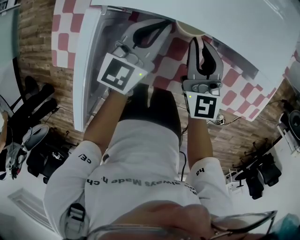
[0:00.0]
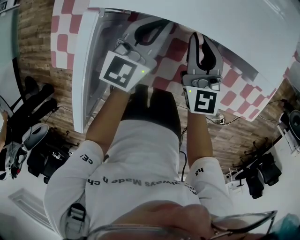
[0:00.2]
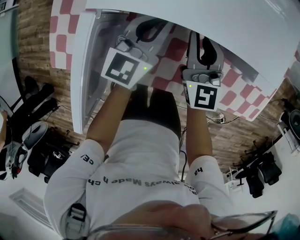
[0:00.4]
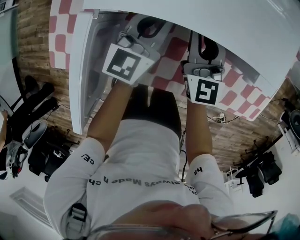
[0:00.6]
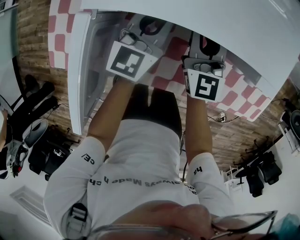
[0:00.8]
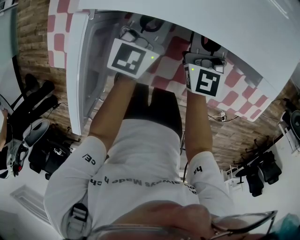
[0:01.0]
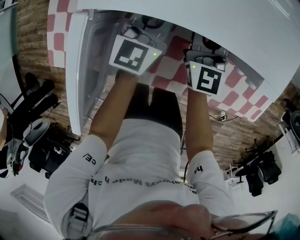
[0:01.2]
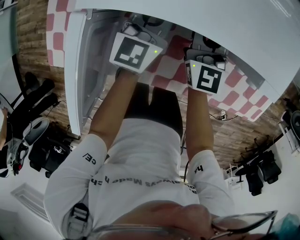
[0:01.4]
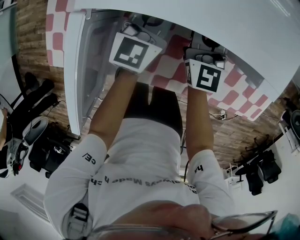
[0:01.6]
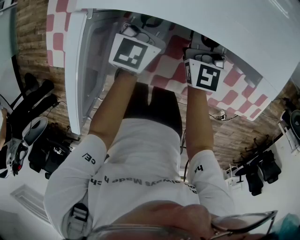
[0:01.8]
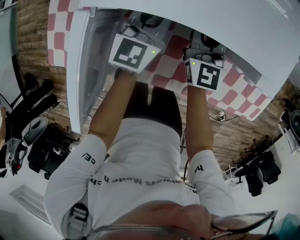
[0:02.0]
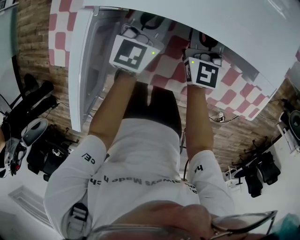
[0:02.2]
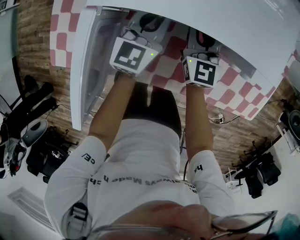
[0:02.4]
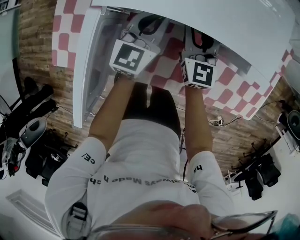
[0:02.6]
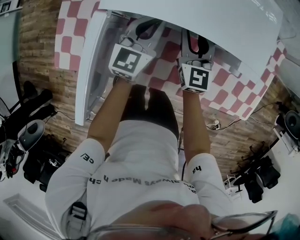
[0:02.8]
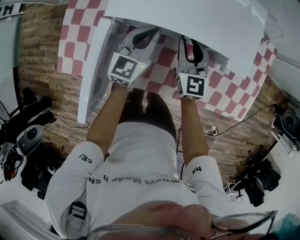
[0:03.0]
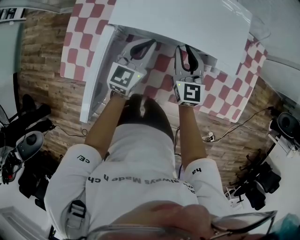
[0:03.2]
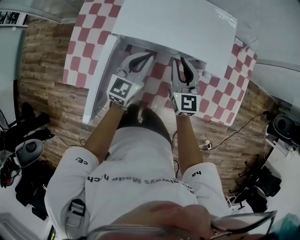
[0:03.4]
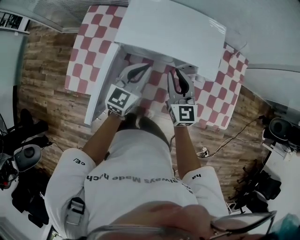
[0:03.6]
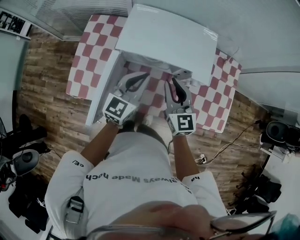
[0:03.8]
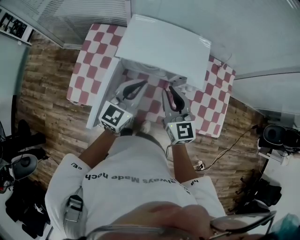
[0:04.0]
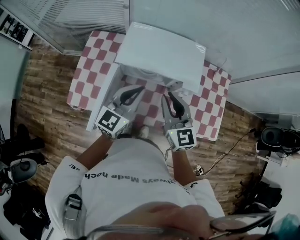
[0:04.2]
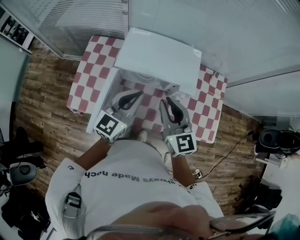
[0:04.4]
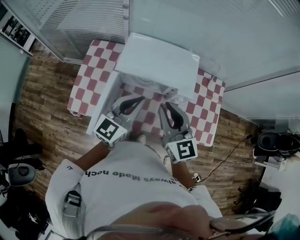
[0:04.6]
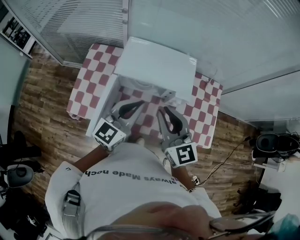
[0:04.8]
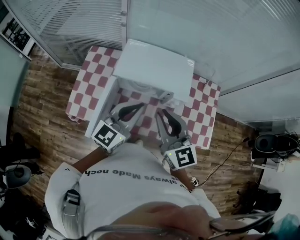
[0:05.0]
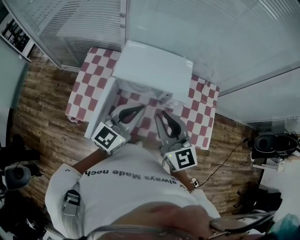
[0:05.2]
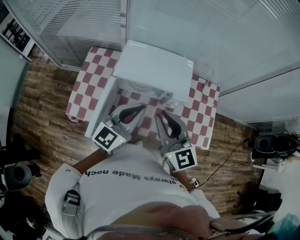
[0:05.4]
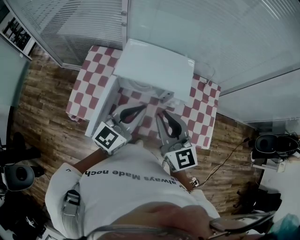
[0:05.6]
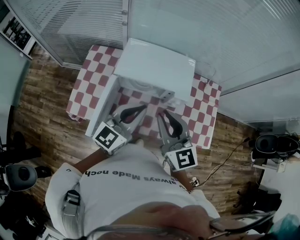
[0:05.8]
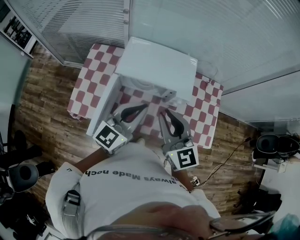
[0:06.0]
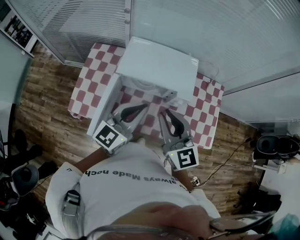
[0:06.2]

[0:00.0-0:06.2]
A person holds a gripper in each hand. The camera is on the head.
0:00.0 to 0:01.6: The two grippers go about 5 cm forward.
0:01.6 to 0:03.2: Both grippers travel together upward and backward, some 10 cm.
0:03.2 to 0:04.6: The two grippers go some 30 cm upward and backward.
0:04.6 to 0:06.2: The grippers make only small movements.

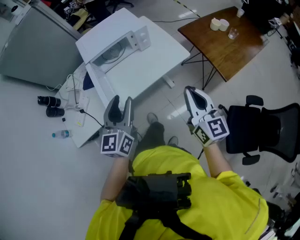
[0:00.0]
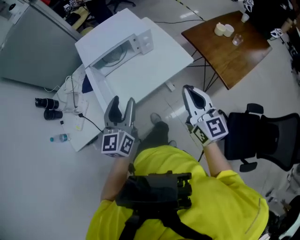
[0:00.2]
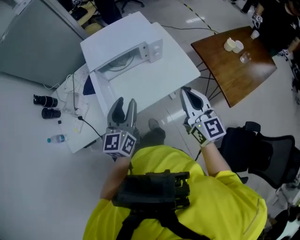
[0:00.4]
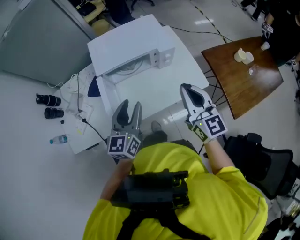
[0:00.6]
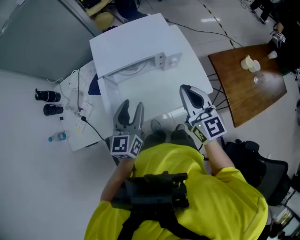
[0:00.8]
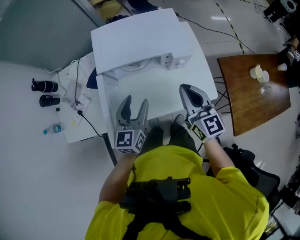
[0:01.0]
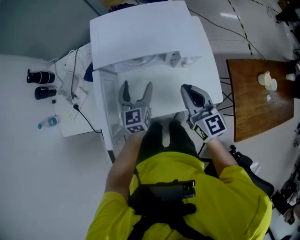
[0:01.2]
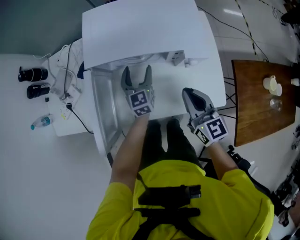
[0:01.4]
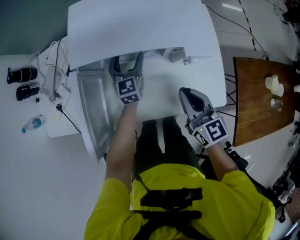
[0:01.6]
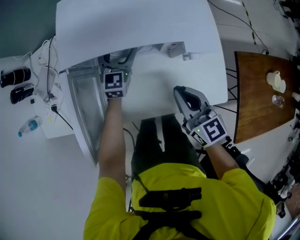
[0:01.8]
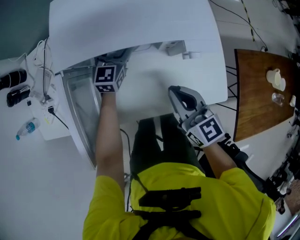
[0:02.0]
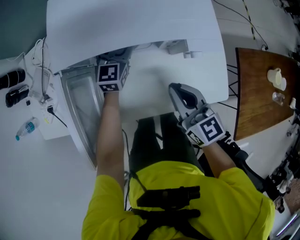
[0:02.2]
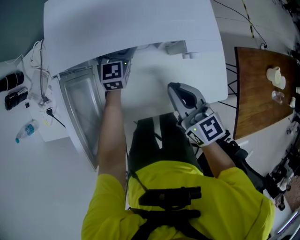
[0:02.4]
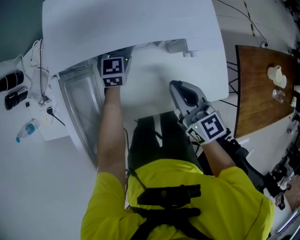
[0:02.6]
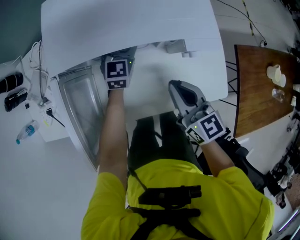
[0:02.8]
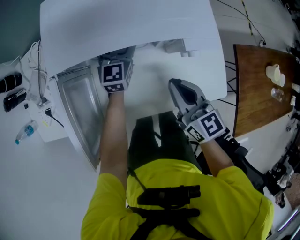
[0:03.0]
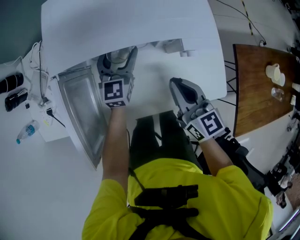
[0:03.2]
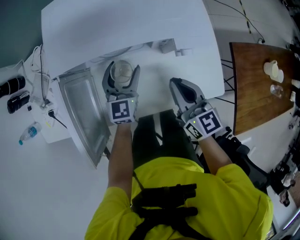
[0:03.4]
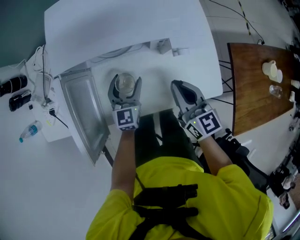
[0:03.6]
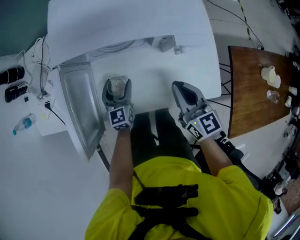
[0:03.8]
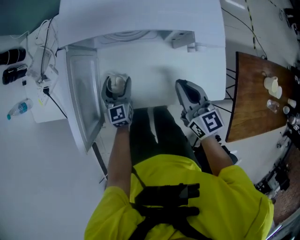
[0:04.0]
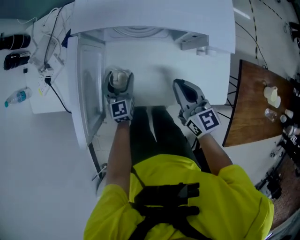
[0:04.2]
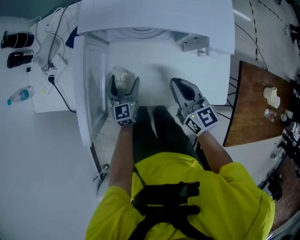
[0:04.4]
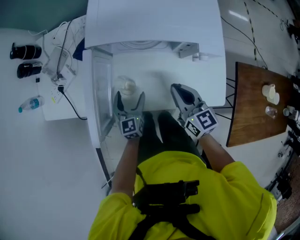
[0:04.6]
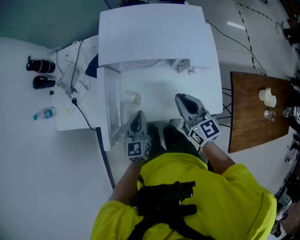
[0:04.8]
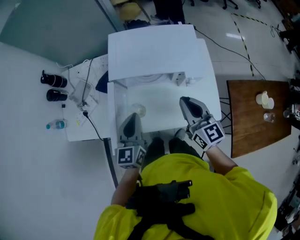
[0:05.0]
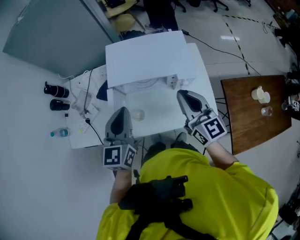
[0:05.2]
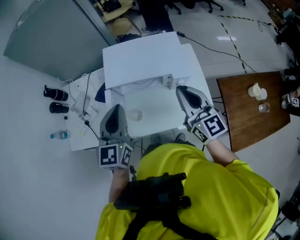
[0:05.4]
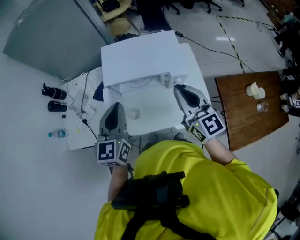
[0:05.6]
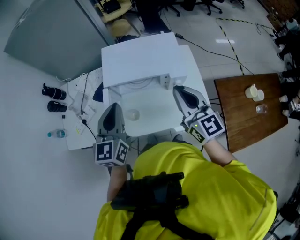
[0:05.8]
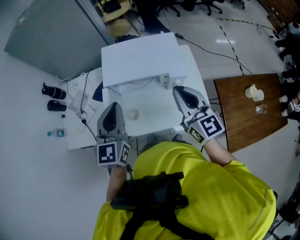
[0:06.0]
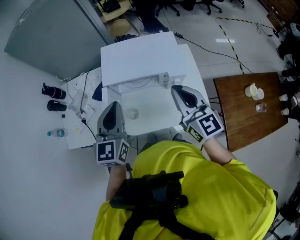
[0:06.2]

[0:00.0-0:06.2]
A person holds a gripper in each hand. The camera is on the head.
0:00.0 to 0:01.6: The right gripper moves roughly 40 cm, and swivels approximately 40 degrees. The left gripper shifts by some 60 cm, turns by about 30 degrees, and opens its fingers.
0:03.2 to 0:04.6: The left gripper is displaced backward and to the left by about 20 cm, and rotates roughly 20 degrees. Meanwhile the right gripper is displaced to the left by roughly 5 cm.
0:04.6 to 0:06.2: The grippers both shift upward by approximately 35 cm. The right gripper rotates about 30 degrees. Meanwhile the left gripper swivels roughly 20 degrees, and closes up.

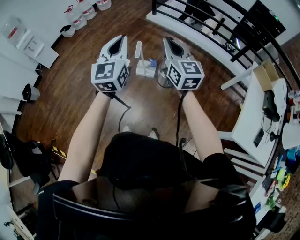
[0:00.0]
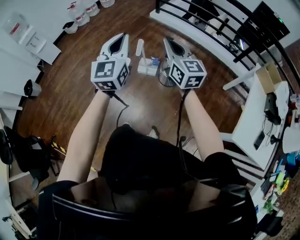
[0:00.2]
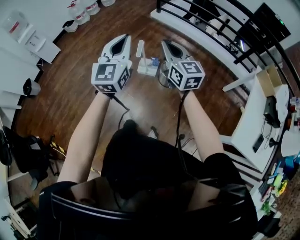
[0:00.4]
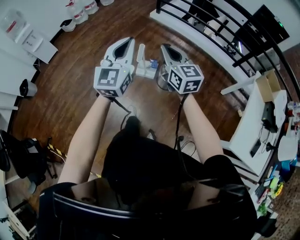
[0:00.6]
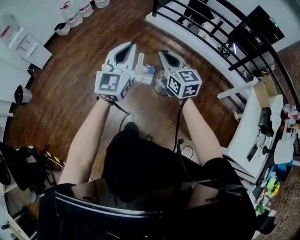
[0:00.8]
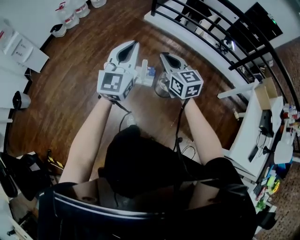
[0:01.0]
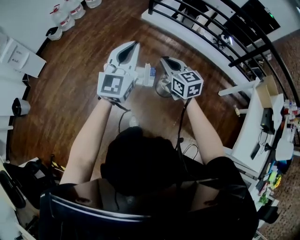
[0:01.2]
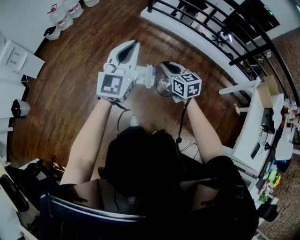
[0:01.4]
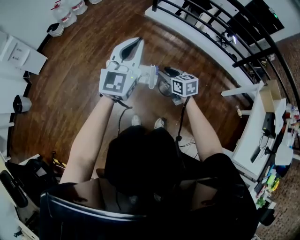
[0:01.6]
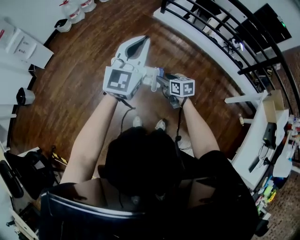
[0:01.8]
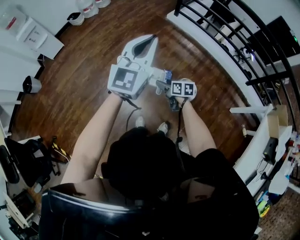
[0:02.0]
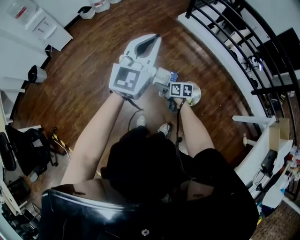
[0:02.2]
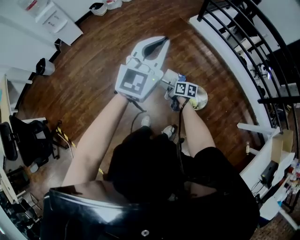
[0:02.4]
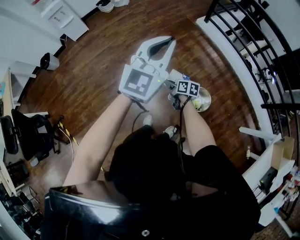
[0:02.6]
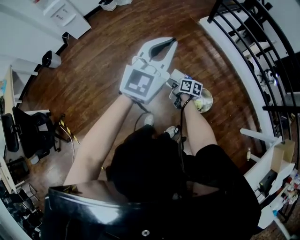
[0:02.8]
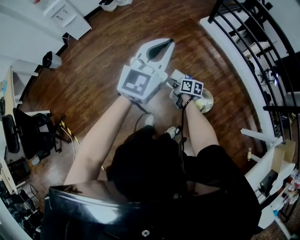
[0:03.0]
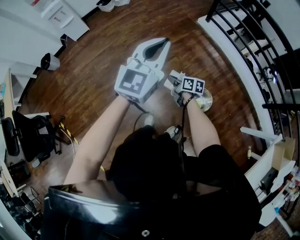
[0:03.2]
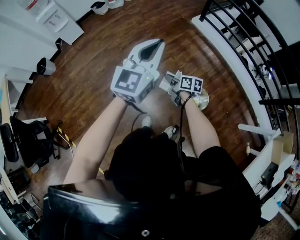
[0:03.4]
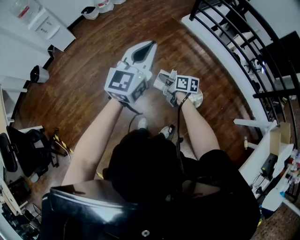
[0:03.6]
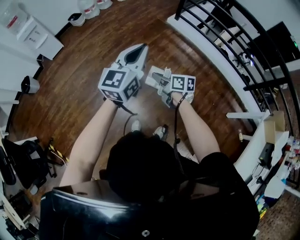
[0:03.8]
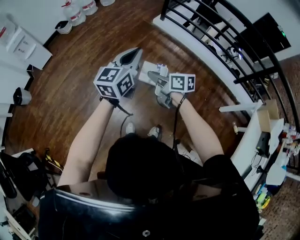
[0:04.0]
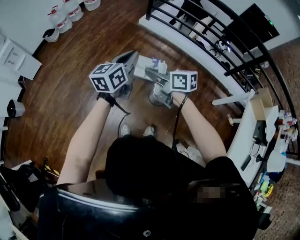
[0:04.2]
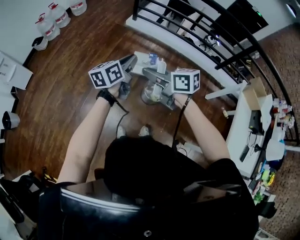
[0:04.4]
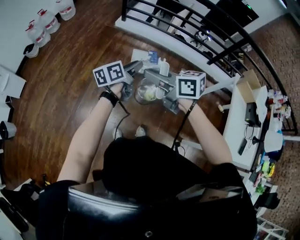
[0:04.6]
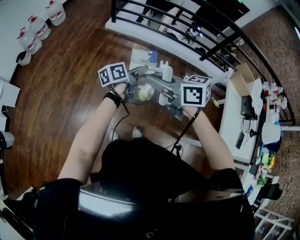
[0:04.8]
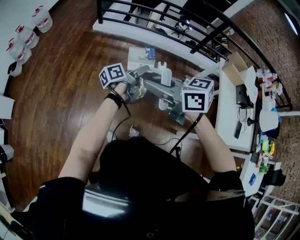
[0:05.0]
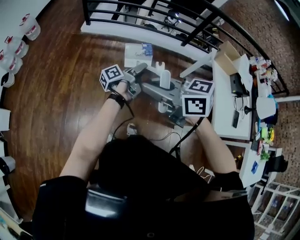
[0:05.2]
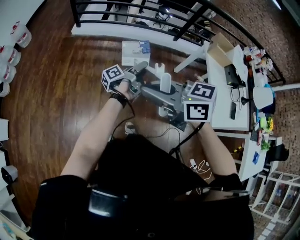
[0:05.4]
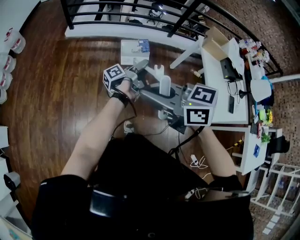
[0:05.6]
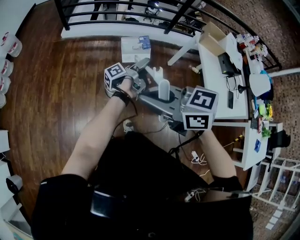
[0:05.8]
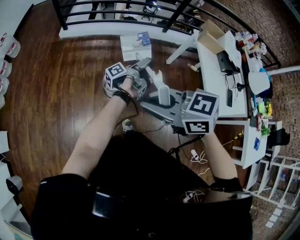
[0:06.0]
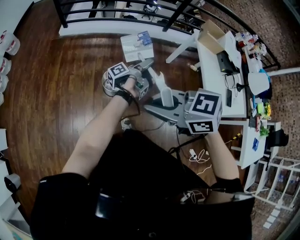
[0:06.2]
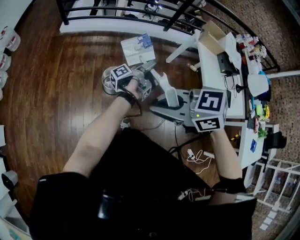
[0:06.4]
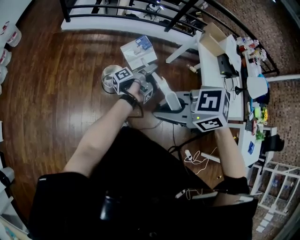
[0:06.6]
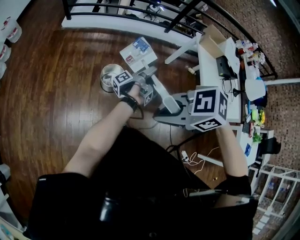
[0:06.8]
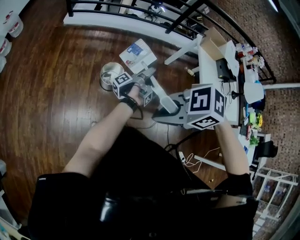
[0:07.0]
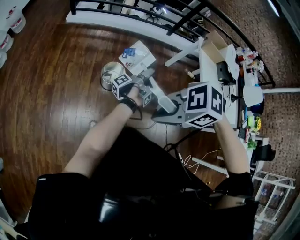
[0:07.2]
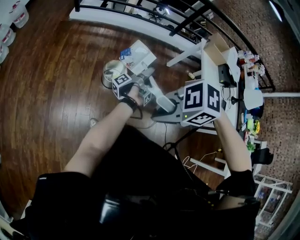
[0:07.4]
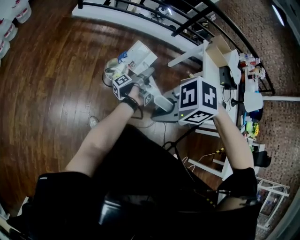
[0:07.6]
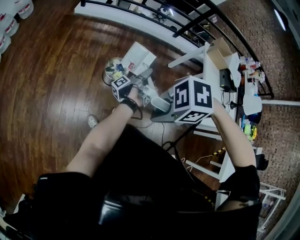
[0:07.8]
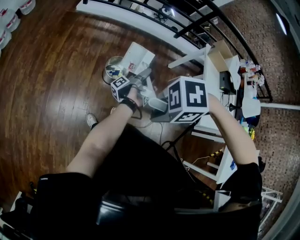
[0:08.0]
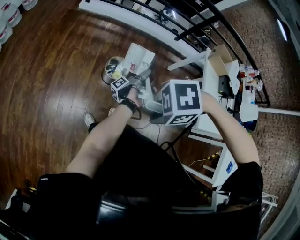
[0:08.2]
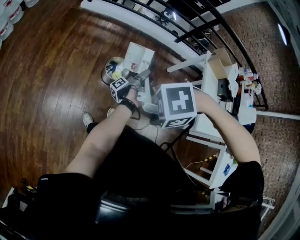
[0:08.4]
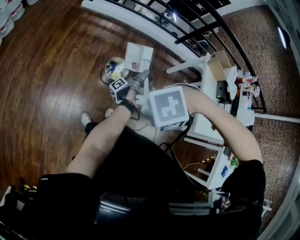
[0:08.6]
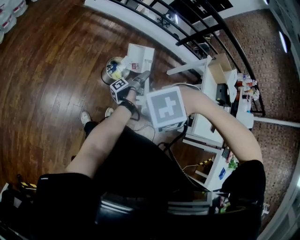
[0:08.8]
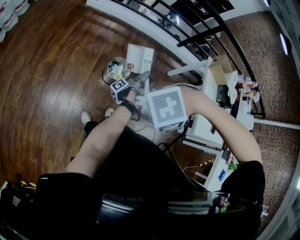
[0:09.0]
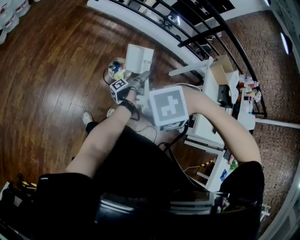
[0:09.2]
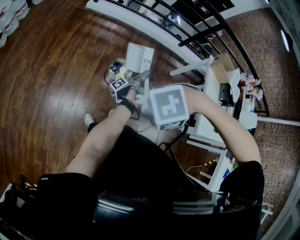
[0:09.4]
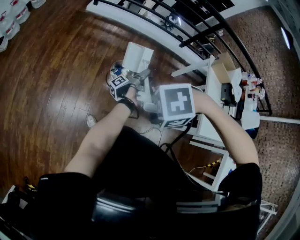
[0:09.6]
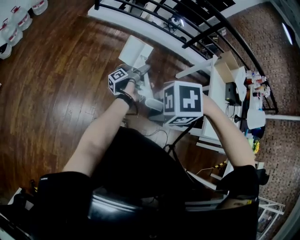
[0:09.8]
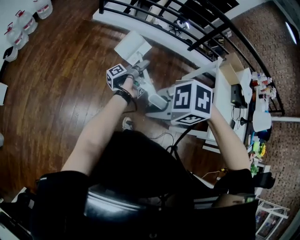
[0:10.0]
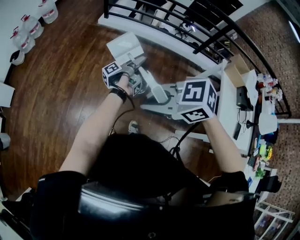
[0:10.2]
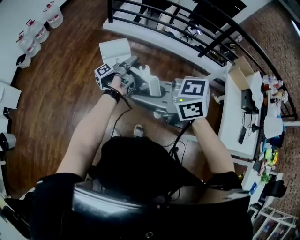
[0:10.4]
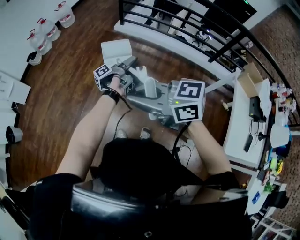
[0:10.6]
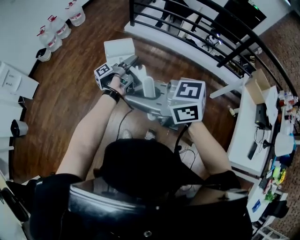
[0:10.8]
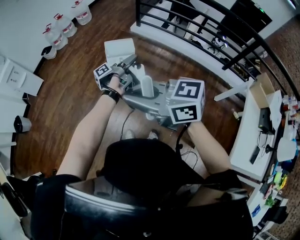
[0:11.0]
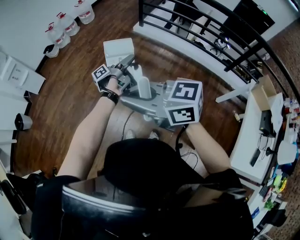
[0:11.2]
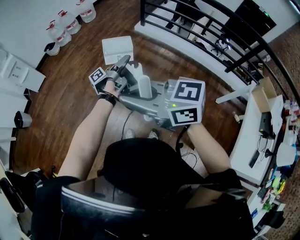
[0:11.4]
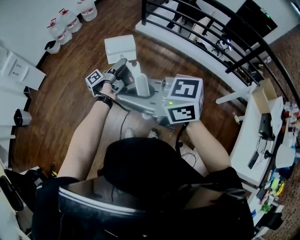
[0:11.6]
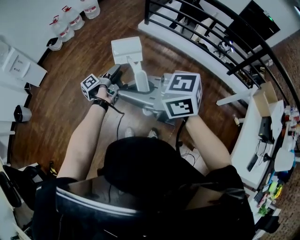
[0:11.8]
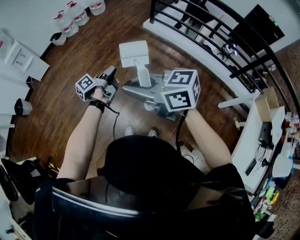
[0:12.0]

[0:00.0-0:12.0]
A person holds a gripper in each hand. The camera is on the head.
0:00.0 to 0:01.6: The right gripper is displaced downward and forward by some 30 cm, points its fingers approximately 30 degrees further downward, and opens up. The left gripper heads forward, covering roughly 20 cm.
0:01.6 to 0:03.0: The right gripper heads downward, to the left and forward, covering approximately 15 cm, swivels roughly 40 degrees, and closes.
0:03.0 to 0:04.4: The right gripper moves upward, about 30 cm, and swivels about 20 degrees. The left gripper shifts about 15 cm downward and to the right, and rotates around the line of its fingers by approximately 50 degrees, counterclockwise from behind.
0:04.4 to 0:06.0: The right gripper goes approximately 25 cm backward, to the right and upward, and rotates approximately 20 degrees. The left gripper is displaced to the right by roughly 35 cm, rolls counterclockwise, seen from behind, by roughly 70 degrees, and opens its fingers.
0:06.0 to 0:07.6: The left gripper ends up some 10 cm from where it was, and swivels some 30 degrees, while the right gripper ends up roughly 10 cm from where it was, and changes its angle by some 60 degrees.
0:07.6 to 0:09.0: The right gripper rotates roughly 40 degrees; the left gripper shifts by about 5 cm.
0:09.0 to 0:10.4: The left gripper moves approximately 20 cm, and swivels some 30 degrees. Meanwhile the right gripper changes place by about 15 cm, and tips its fingers upward by about 40 degrees.
0:10.4 to 0:12.0: The right gripper is displaced forward and to the left by roughly 10 cm. The left gripper is displaced to the left and forward by about 30 cm, swivels roughly 40 degrees, and closes its fingers.
